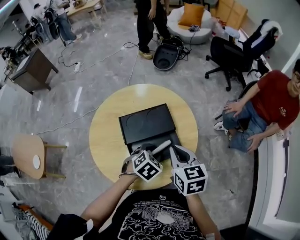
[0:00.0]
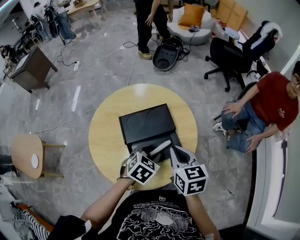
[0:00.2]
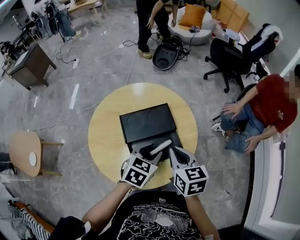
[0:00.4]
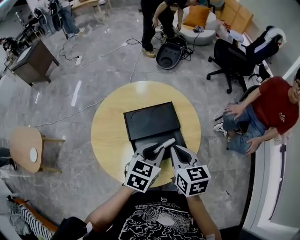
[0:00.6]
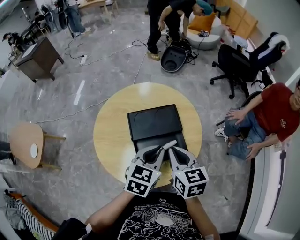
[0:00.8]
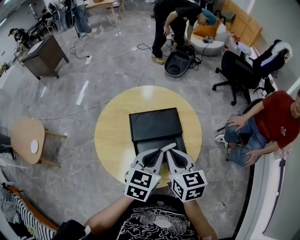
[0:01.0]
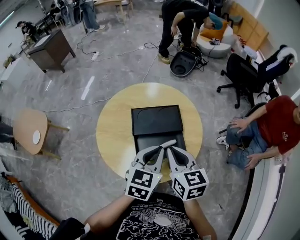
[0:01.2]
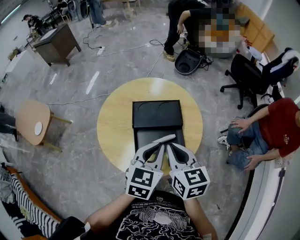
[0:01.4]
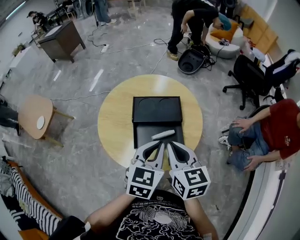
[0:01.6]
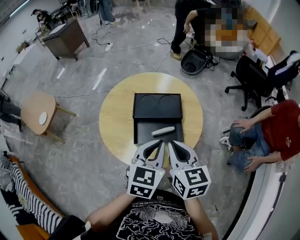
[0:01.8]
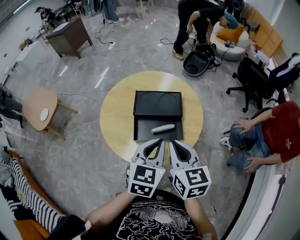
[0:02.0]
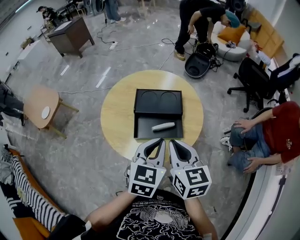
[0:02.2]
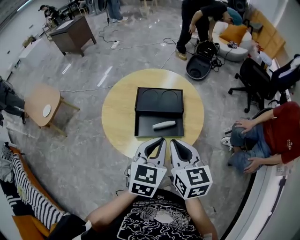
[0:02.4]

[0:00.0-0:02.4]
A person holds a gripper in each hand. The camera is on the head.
0:00.0 to 0:01.2: The right gripper ends up some 5 cm from where it was, while the left gripper is displaced upward by roughly 15 cm, tips its fingers upward by roughly 30 degrees, and closes up.
0:01.2 to 0:02.4: Both grippers travel together backward, about 10 cm.

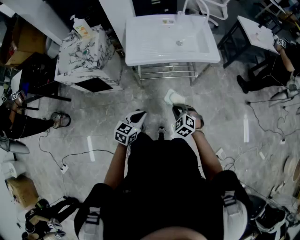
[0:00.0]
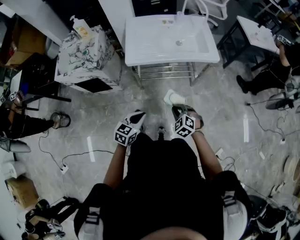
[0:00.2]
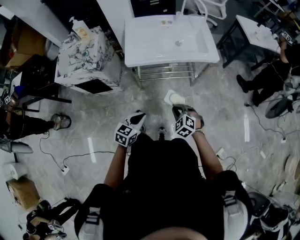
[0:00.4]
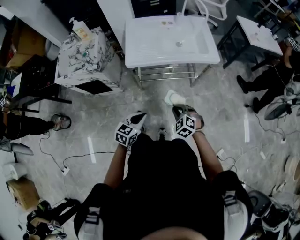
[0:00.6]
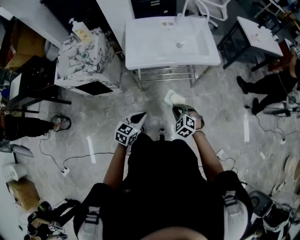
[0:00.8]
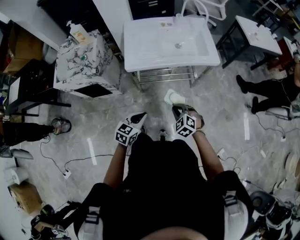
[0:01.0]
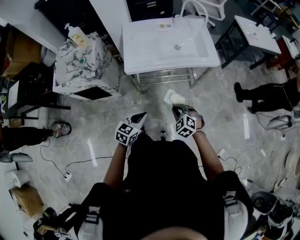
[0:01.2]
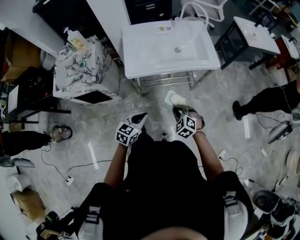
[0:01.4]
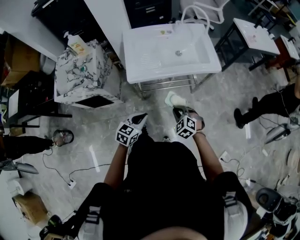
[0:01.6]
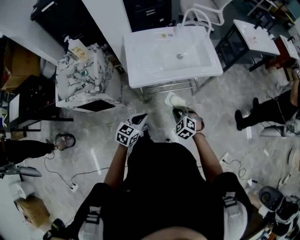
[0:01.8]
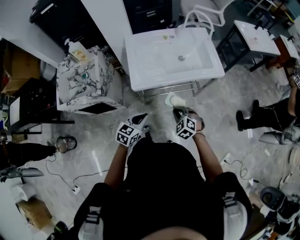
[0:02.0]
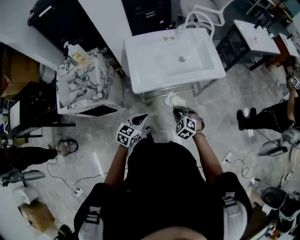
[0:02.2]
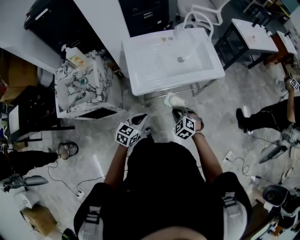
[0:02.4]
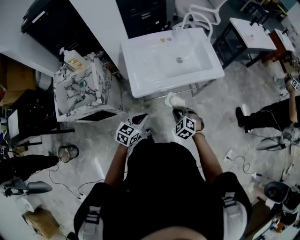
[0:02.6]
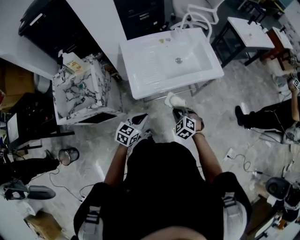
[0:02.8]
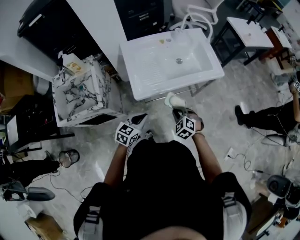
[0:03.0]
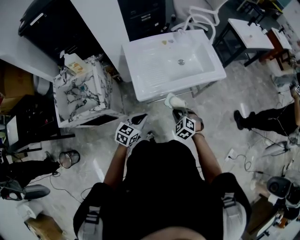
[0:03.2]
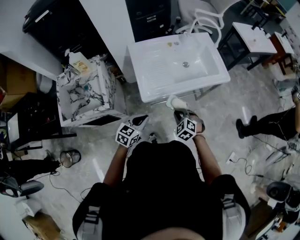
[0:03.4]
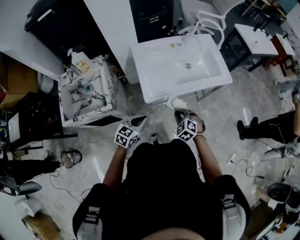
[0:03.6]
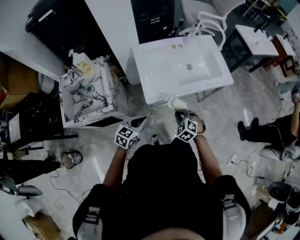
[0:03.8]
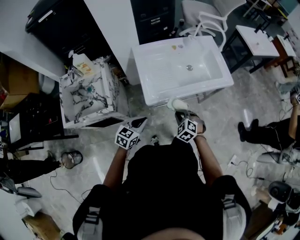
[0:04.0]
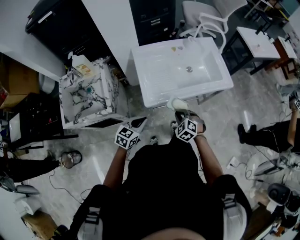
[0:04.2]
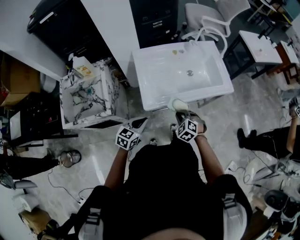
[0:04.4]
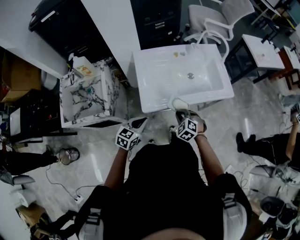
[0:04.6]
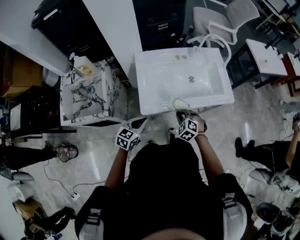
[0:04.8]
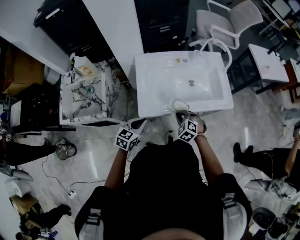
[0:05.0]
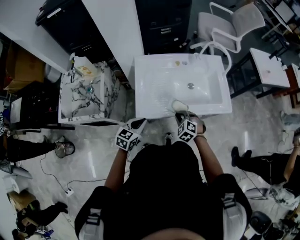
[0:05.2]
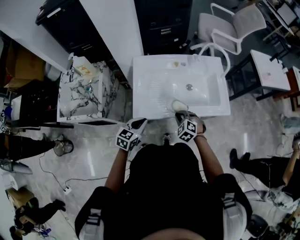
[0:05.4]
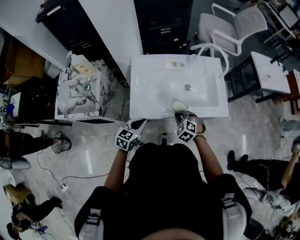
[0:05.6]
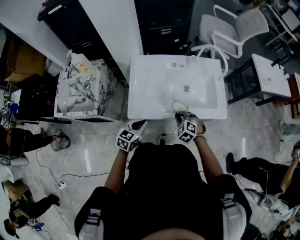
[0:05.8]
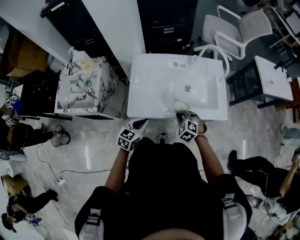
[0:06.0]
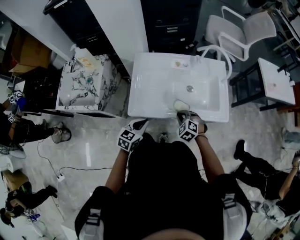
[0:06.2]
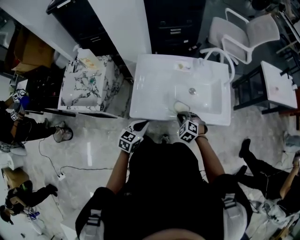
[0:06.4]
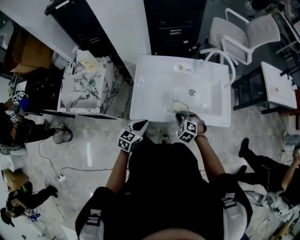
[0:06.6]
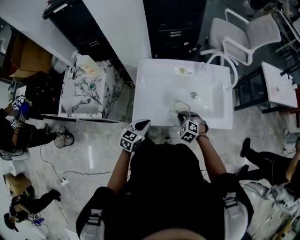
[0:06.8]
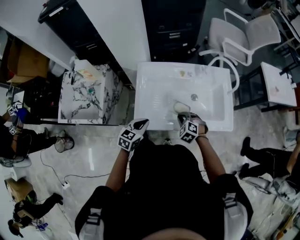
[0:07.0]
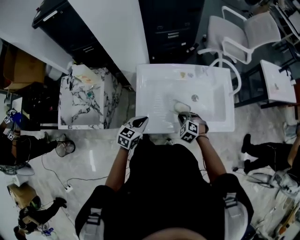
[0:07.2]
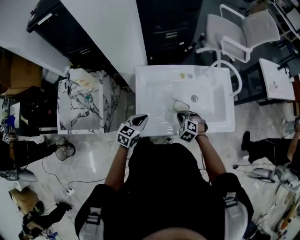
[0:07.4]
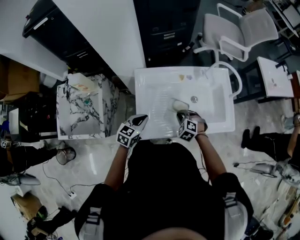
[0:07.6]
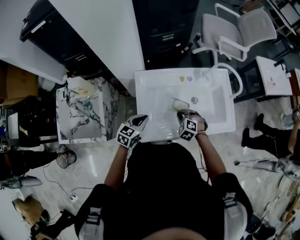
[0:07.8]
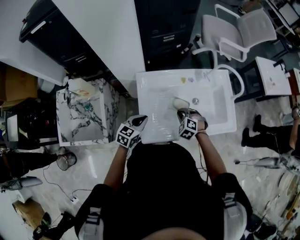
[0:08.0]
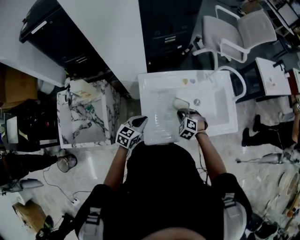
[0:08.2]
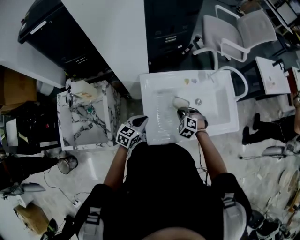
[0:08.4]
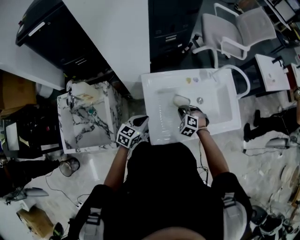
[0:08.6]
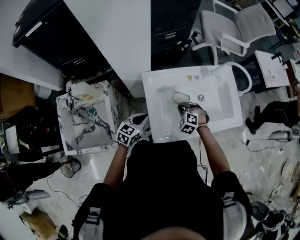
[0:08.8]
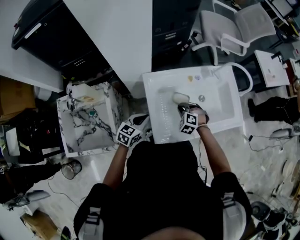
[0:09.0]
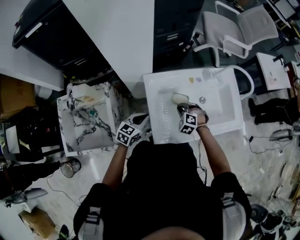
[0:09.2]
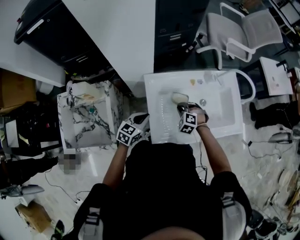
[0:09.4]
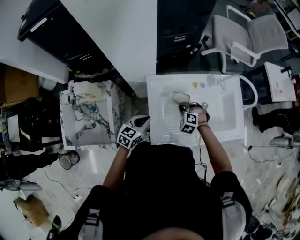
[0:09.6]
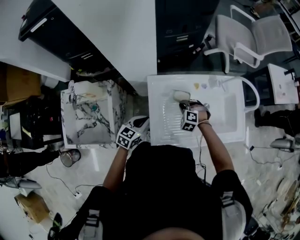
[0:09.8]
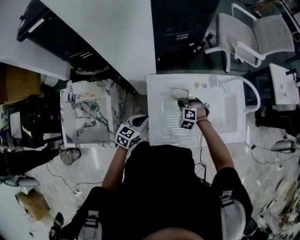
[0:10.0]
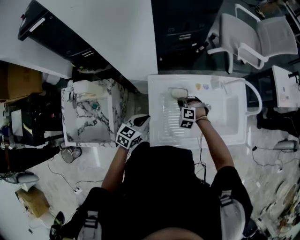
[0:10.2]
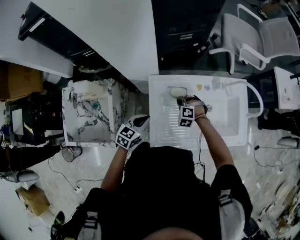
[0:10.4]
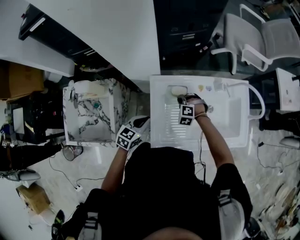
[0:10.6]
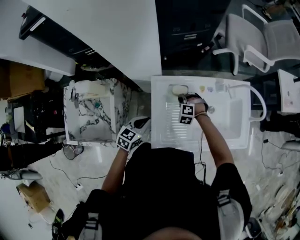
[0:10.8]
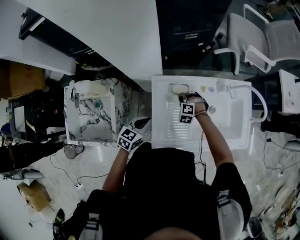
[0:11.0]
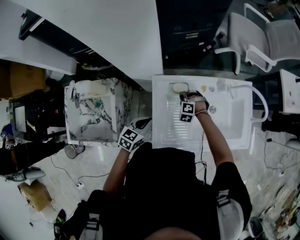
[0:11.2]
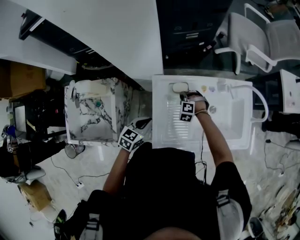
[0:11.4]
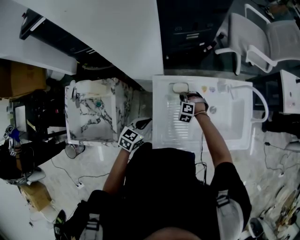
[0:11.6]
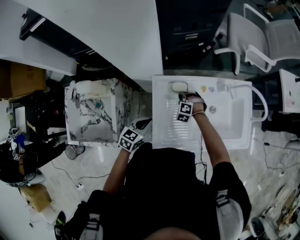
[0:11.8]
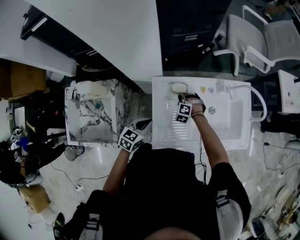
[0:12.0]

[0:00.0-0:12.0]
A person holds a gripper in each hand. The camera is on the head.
0:00.0 to 0:01.6: Both grippers move forward, roughly 10 cm.
0:01.6 to 0:03.0: The two grippers go some 10 cm to the left and forward.
0:03.0 to 0:04.4: The left gripper travels to the left by about 5 cm. The right gripper moves forward, approximately 5 cm.
0:04.4 to 0:06.0: The left gripper moves to the right and forward, about 15 cm. The right gripper is displaced forward and to the right by about 15 cm.
0:06.0 to 0:07.6: Both grippers move forward and to the left, roughly 15 cm.
0:07.6 to 0:09.0: The two grippers go some 10 cm to the left.
0:09.0 to 0:10.4: The right gripper travels forward by approximately 10 cm.
0:10.4 to 0:12.0: The right gripper ends up some 5 cm from where it was.

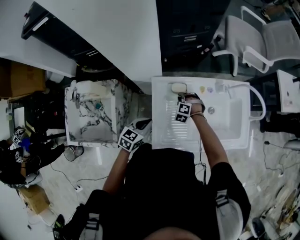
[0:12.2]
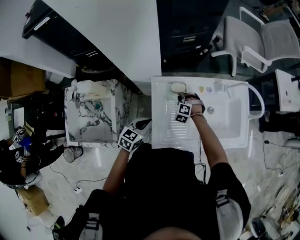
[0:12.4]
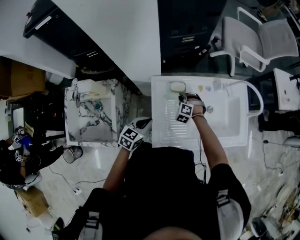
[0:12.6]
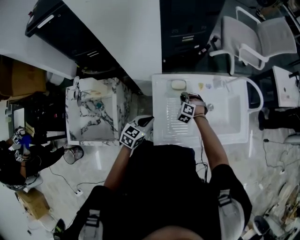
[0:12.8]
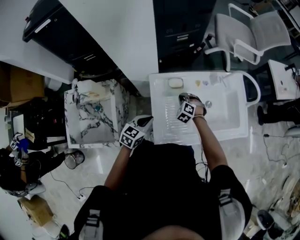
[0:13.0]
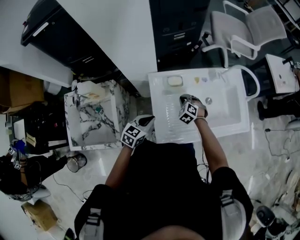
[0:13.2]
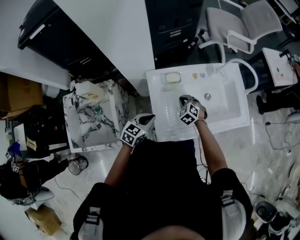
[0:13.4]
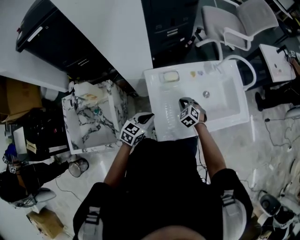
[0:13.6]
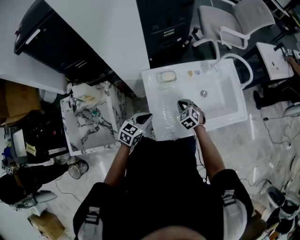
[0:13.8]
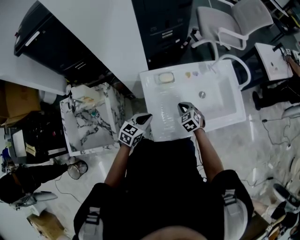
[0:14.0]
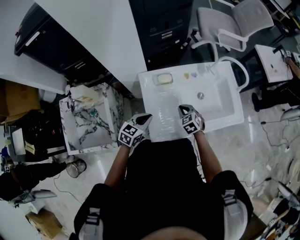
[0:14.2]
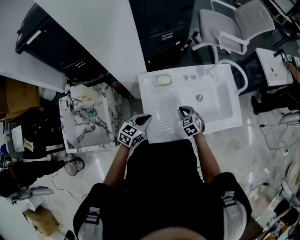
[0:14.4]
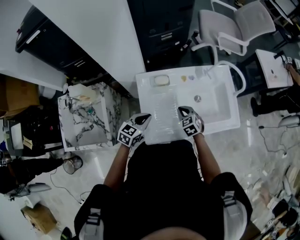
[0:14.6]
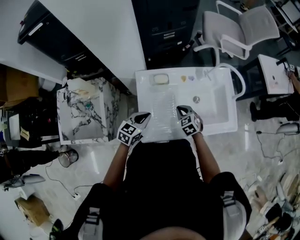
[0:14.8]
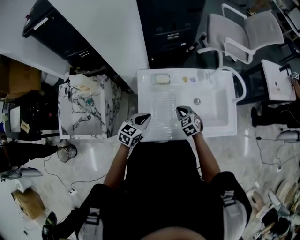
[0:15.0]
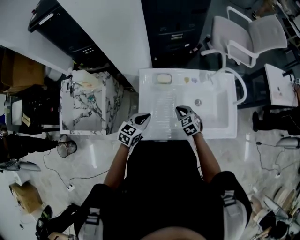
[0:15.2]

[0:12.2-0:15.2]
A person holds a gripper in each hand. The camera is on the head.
0:12.2 to 0:13.8: The right gripper shifts approximately 15 cm backward, to the right and upward, and rolls clockwise, seen from behind, by about 40 degrees.
0:13.8 to 0:15.2: Both grippers move to the right, roughly 5 cm.

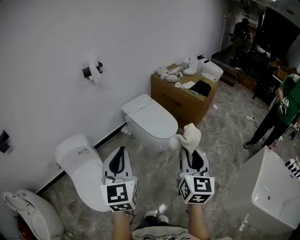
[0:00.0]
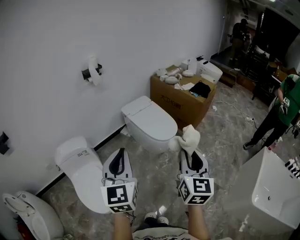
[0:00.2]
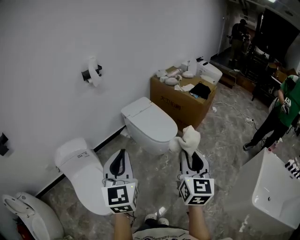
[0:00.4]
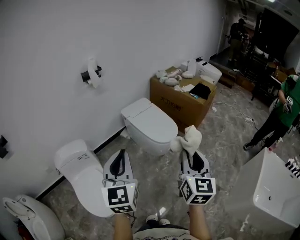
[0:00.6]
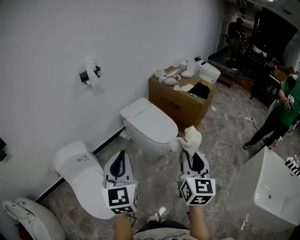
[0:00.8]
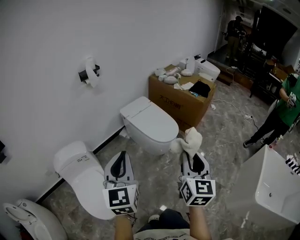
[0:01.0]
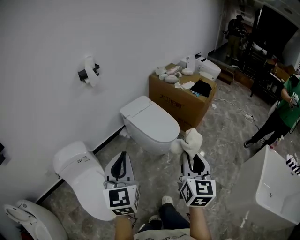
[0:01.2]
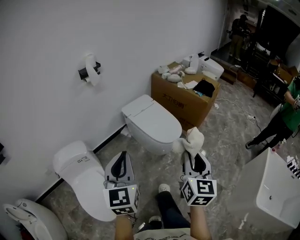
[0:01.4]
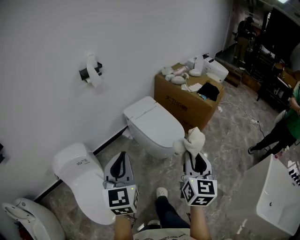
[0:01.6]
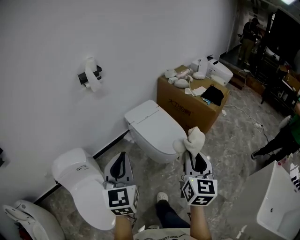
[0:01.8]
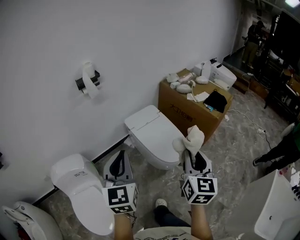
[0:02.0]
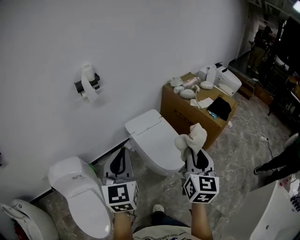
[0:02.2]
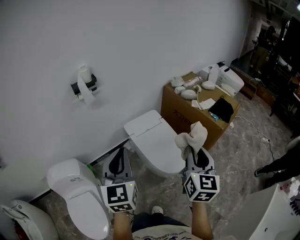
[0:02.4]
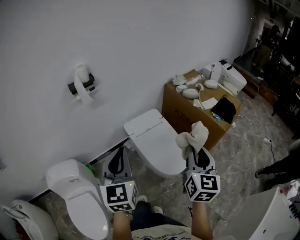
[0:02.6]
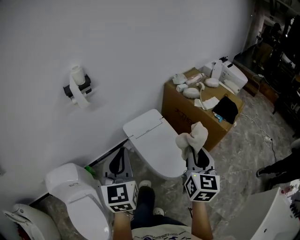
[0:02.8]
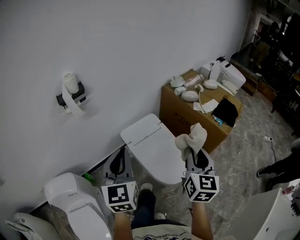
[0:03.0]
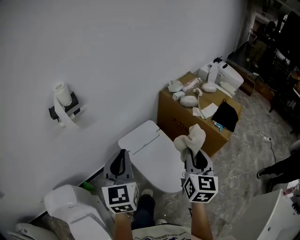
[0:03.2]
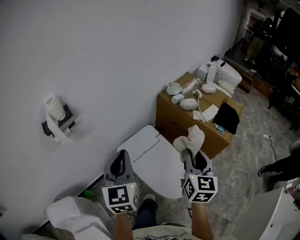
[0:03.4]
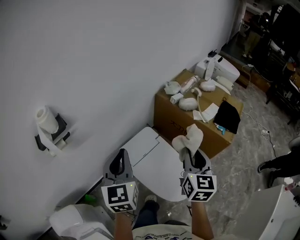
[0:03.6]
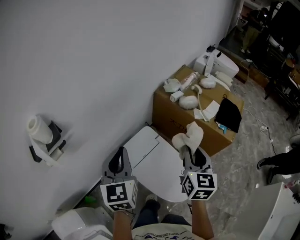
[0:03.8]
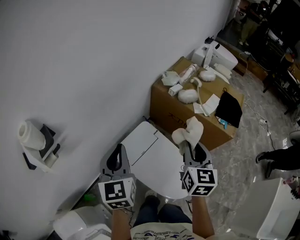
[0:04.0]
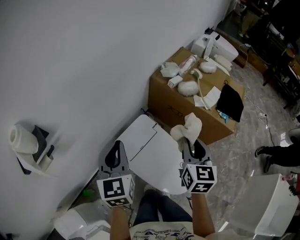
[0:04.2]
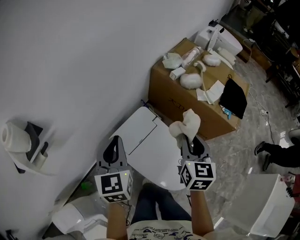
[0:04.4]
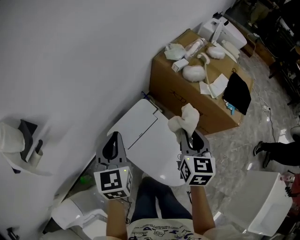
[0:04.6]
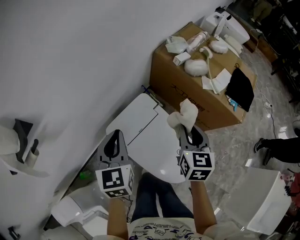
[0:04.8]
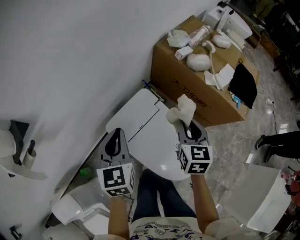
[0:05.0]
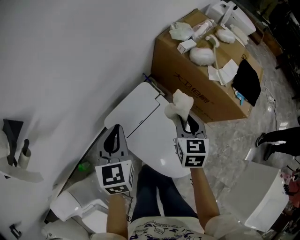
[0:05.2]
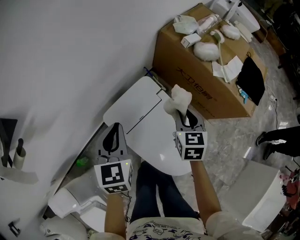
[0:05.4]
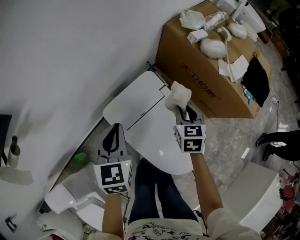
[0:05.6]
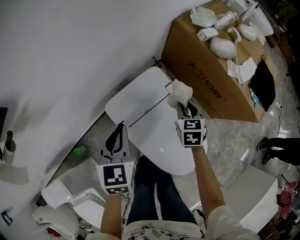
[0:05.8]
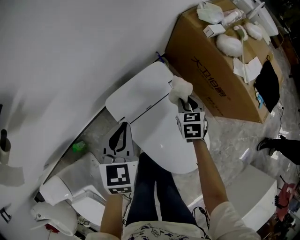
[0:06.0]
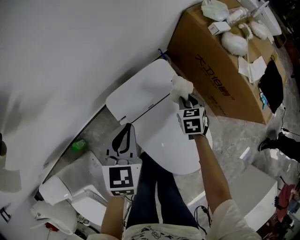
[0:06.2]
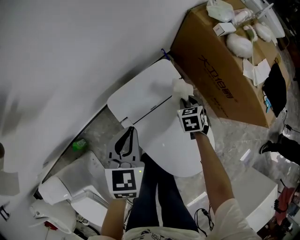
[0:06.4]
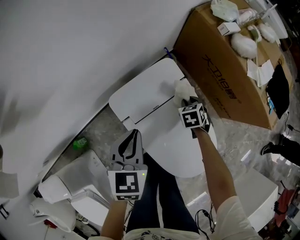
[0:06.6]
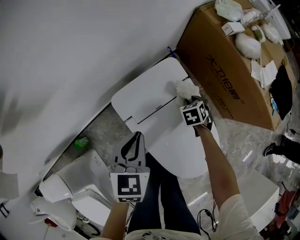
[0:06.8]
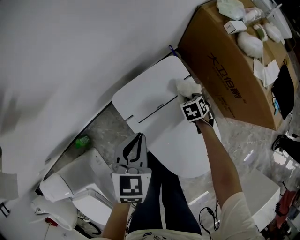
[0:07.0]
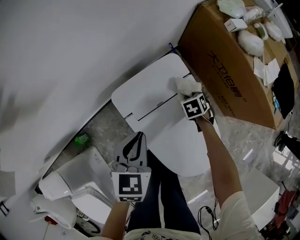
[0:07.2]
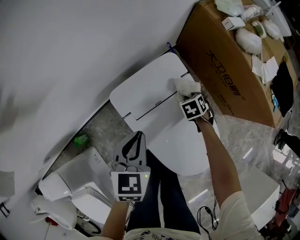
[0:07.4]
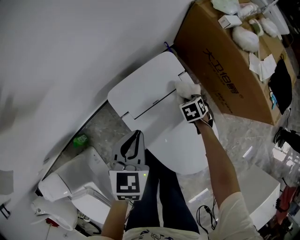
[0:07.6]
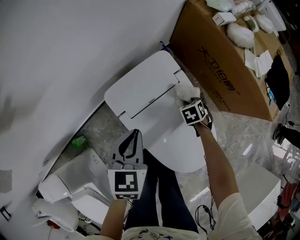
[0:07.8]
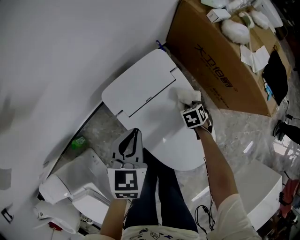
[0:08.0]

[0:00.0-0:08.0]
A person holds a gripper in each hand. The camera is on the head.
0:00.0 to 0:01.6: The grippers both shift forward by roughly 15 cm.
0:01.6 to 0:03.2: The two grippers travel together, forward, about 50 cm.
0:03.2 to 0:04.8: Both grippers move forward and downward, about 30 cm.
0:04.8 to 0:06.4: The left gripper moves downward, about 20 cm. The right gripper is displaced downward by about 35 cm, and points its fingers roughly 30 degrees further downward.
0:06.4 to 0:08.0: The right gripper moves downward, backward and to the right, about 10 cm. Meanwhile the left gripper moves some 5 cm.
